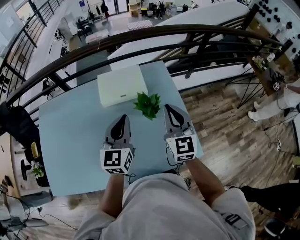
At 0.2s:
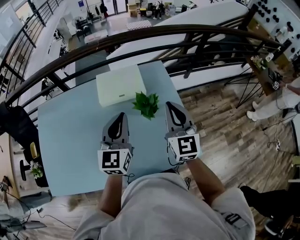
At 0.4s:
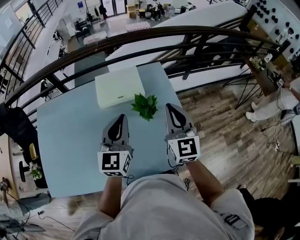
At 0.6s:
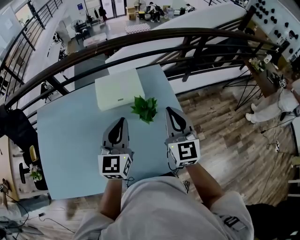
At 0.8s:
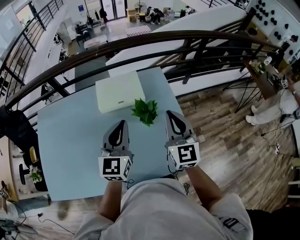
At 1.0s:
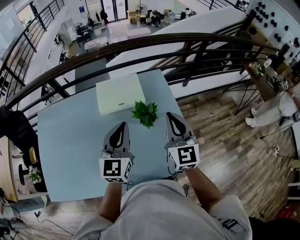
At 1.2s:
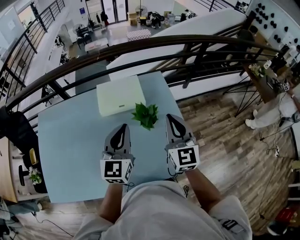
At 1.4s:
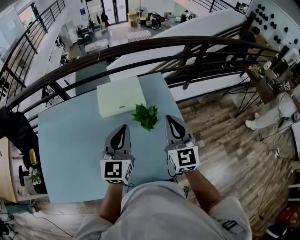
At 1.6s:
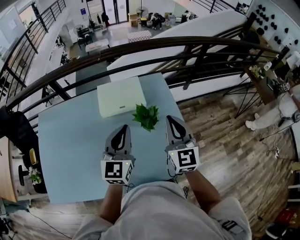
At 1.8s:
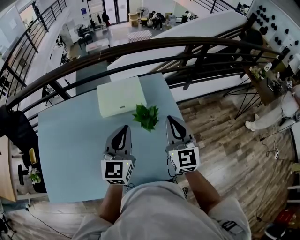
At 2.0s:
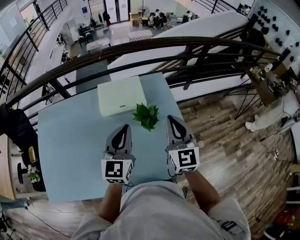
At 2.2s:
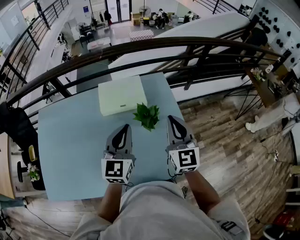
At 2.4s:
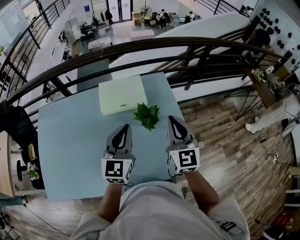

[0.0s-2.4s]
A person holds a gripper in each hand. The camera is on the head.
0.0s to 1.2s: The grippers make only small movements.
1.2s to 2.4s: Both grippers stay put.

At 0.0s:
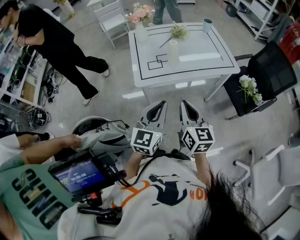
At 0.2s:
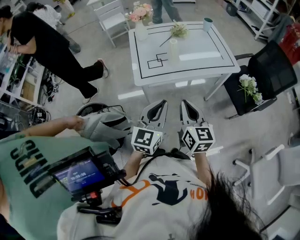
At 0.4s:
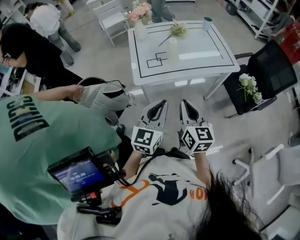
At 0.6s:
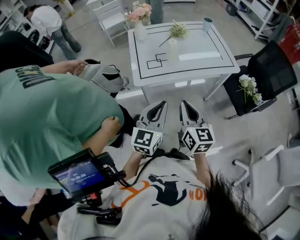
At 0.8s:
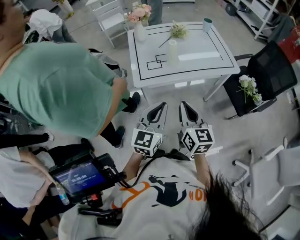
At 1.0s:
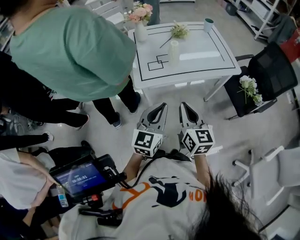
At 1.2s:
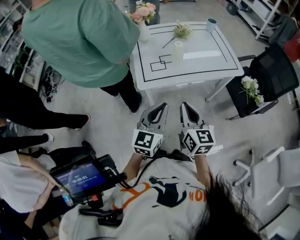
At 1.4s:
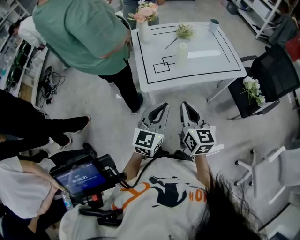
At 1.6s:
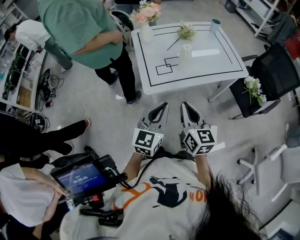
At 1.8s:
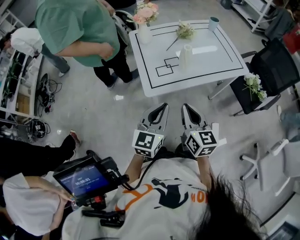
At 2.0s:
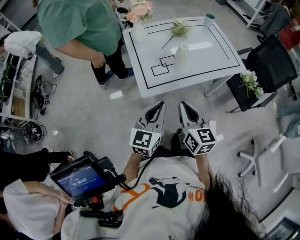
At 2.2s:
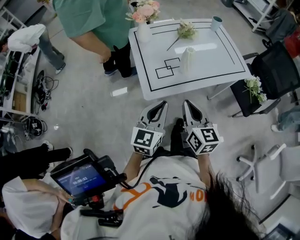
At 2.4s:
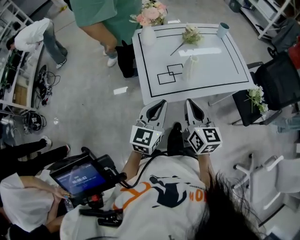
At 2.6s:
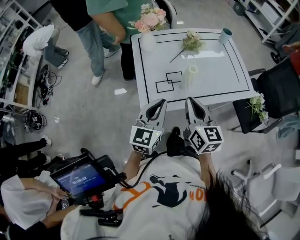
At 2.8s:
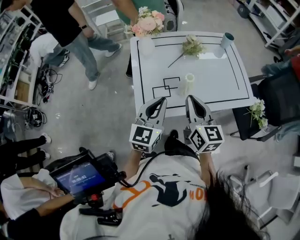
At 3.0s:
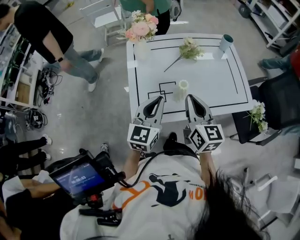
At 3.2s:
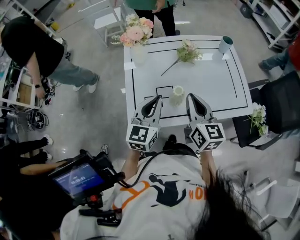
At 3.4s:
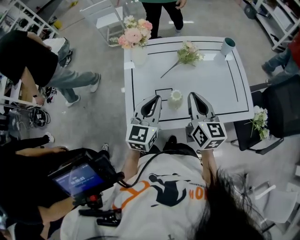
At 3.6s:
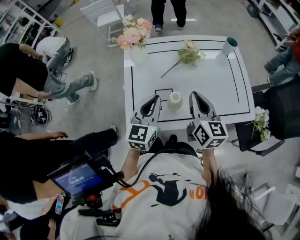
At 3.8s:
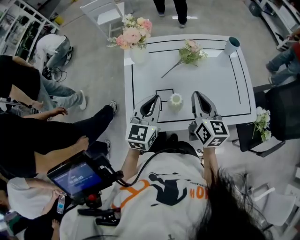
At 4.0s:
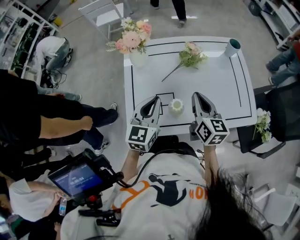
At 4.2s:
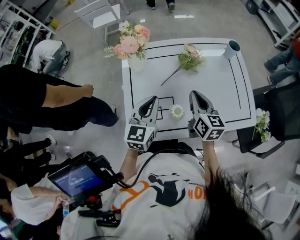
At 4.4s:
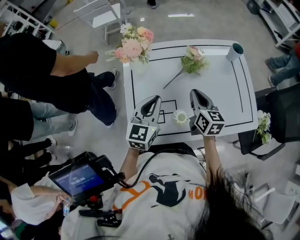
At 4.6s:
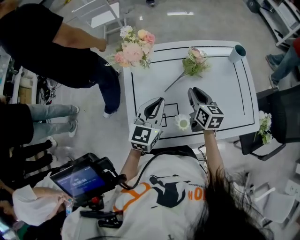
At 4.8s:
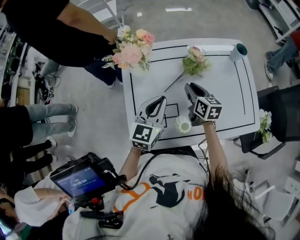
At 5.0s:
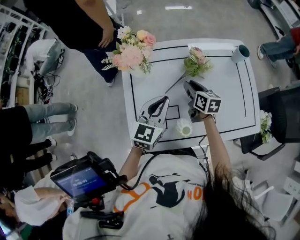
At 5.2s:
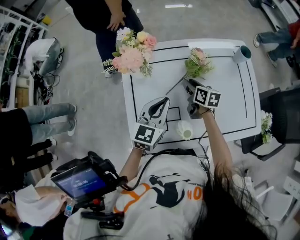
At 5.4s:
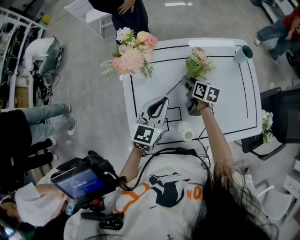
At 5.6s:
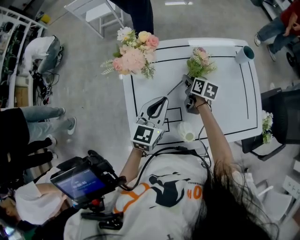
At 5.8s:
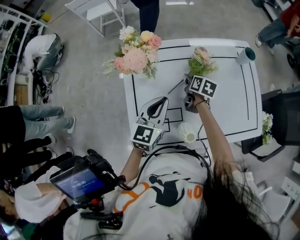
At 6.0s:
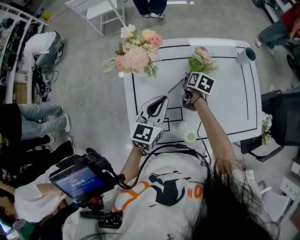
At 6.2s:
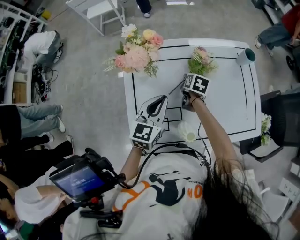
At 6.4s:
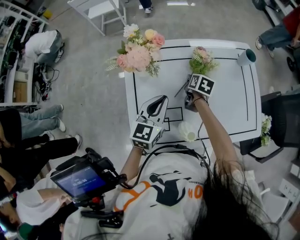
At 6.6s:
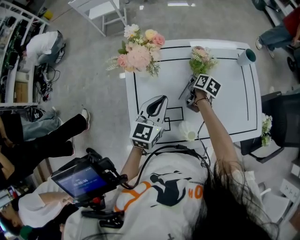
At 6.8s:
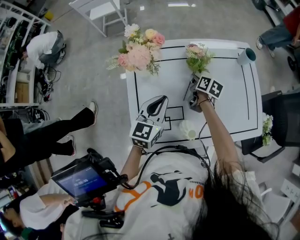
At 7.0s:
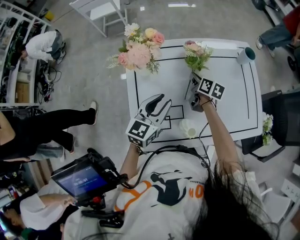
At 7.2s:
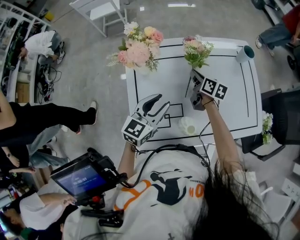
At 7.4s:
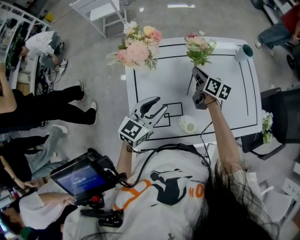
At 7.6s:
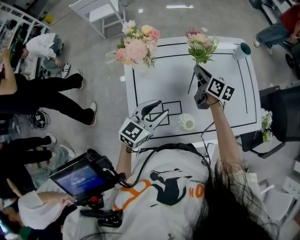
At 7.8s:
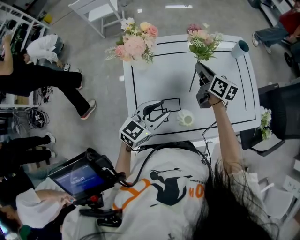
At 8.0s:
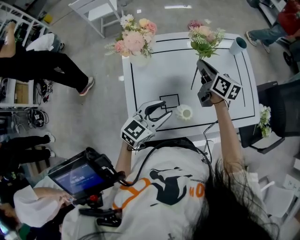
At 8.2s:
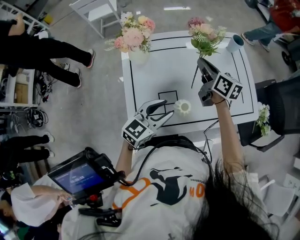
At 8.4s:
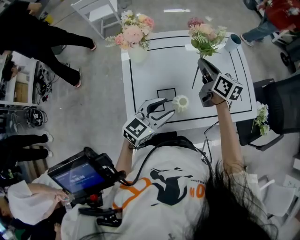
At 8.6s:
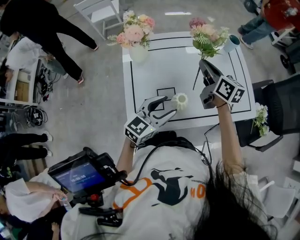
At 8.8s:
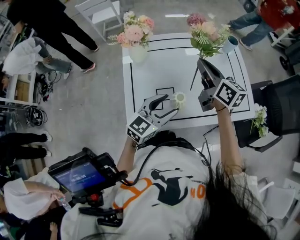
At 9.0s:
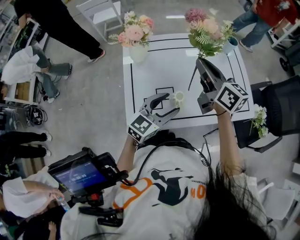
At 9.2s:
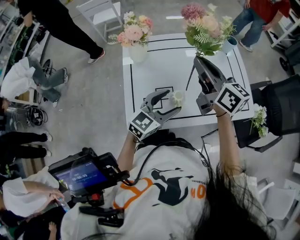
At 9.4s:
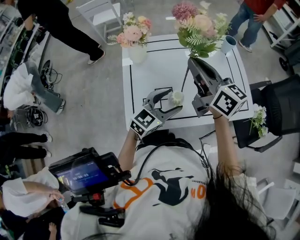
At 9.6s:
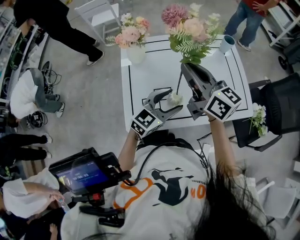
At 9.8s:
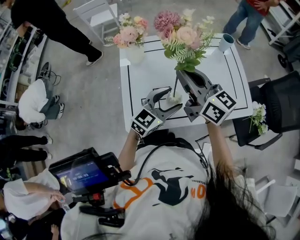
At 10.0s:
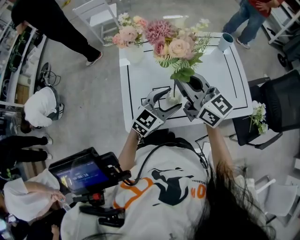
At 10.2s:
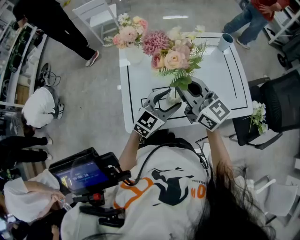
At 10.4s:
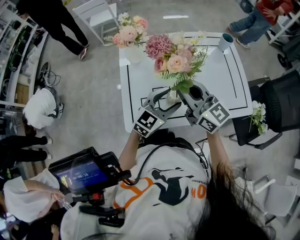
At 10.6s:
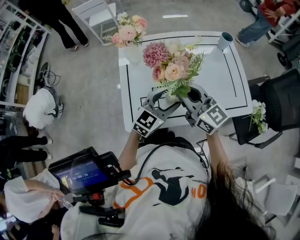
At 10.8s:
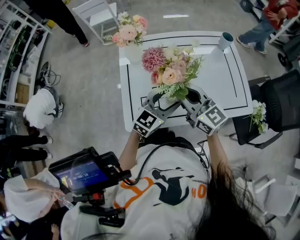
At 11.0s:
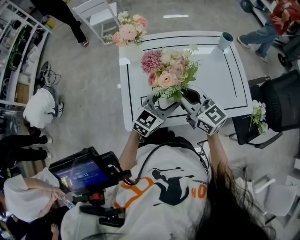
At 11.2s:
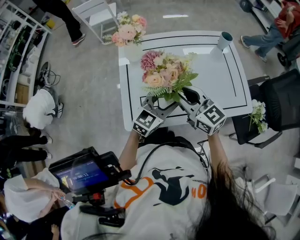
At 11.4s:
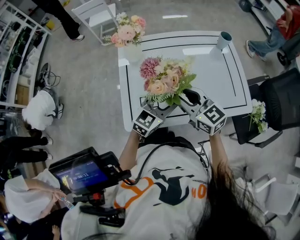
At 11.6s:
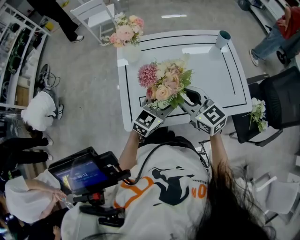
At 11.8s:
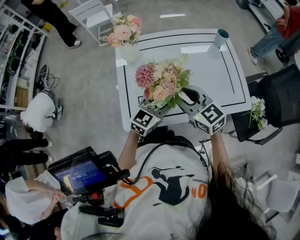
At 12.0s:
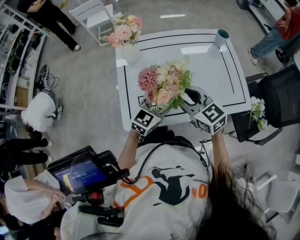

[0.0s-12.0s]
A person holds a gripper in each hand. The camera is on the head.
0.0s to 1.6s: The two grippers go some 10 cm to the left and forward.
1.6s to 3.0s: Both grippers move forward, about 20 cm.
3.0s to 4.4s: The right gripper heads forward and downward, covering some 20 cm. Meanwhile the left gripper moves forward, approximately 15 cm.
4.4s to 6.0s: The left gripper moves forward, some 5 cm, while the right gripper moves forward and downward, approximately 20 cm, tilts its fingers approximately 30 degrees downward, and opens.
6.0s to 7.6s: The right gripper heads upward, covering approximately 10 cm, angles its fingers upward, by roughly 30 degrees, and closes up. Meanwhile the left gripper goes about 5 cm backward, rotates approximately 20 degrees, and opens up.
7.6s to 9.0s: The left gripper moves to the right and backward, some 10 cm. Meanwhile the right gripper moves upward and backward, about 20 cm, and rotates approximately 20 degrees.
9.0s to 10.4s: The right gripper shifts some 10 cm backward and to the left, and turns by roughly 20 degrees.
10.4s to 12.0s: The right gripper moves downward, approximately 5 cm, swivels some 30 degrees, and opens up.

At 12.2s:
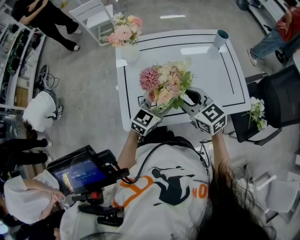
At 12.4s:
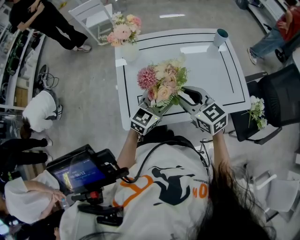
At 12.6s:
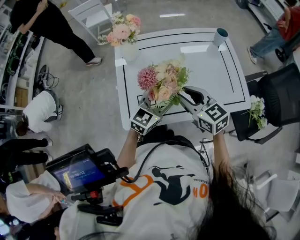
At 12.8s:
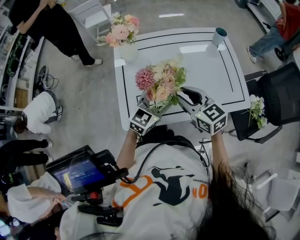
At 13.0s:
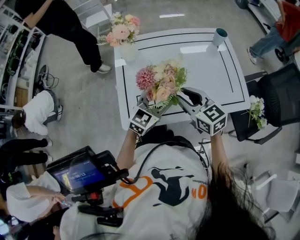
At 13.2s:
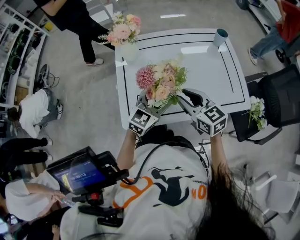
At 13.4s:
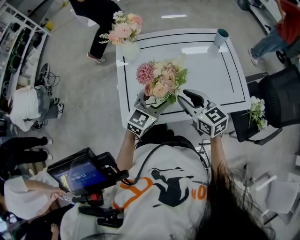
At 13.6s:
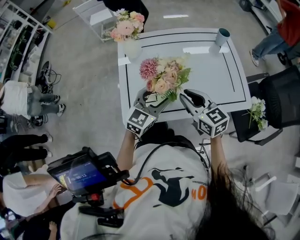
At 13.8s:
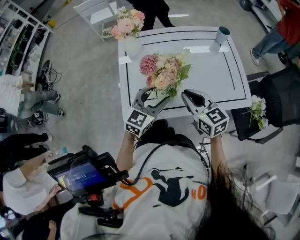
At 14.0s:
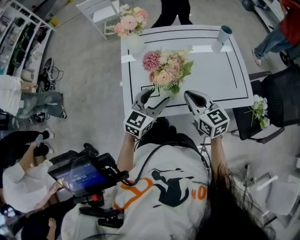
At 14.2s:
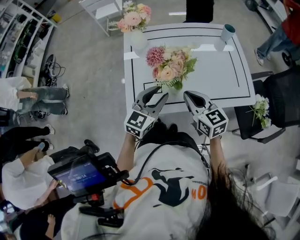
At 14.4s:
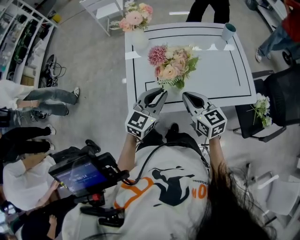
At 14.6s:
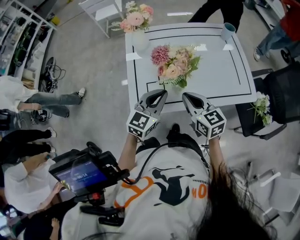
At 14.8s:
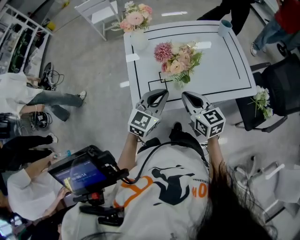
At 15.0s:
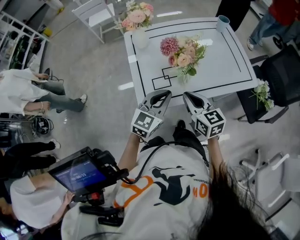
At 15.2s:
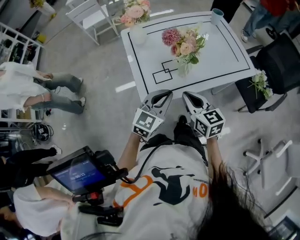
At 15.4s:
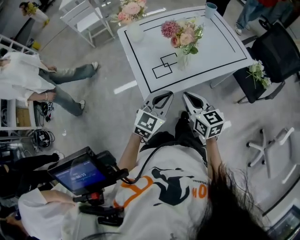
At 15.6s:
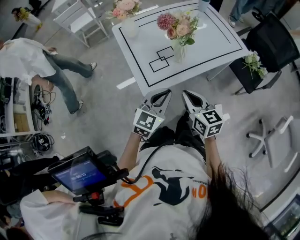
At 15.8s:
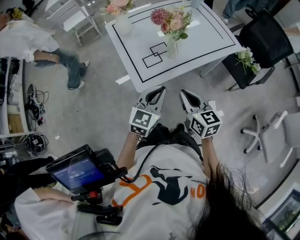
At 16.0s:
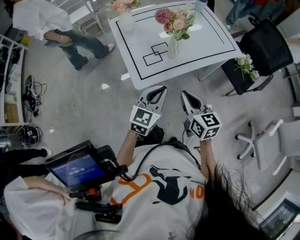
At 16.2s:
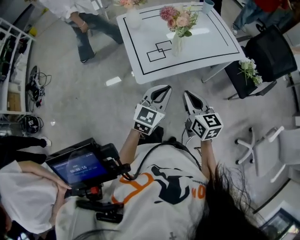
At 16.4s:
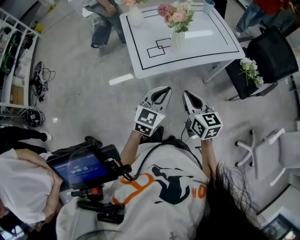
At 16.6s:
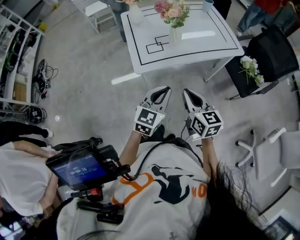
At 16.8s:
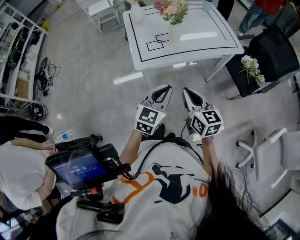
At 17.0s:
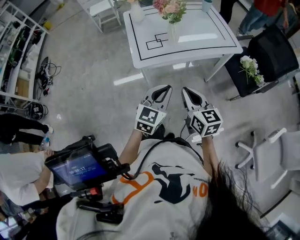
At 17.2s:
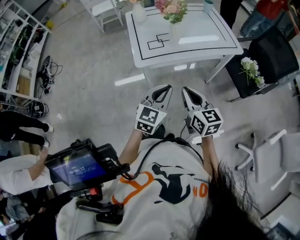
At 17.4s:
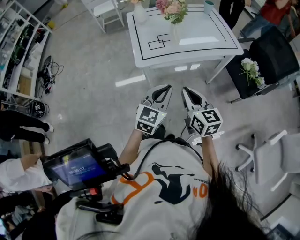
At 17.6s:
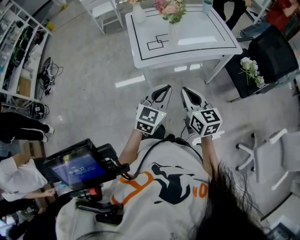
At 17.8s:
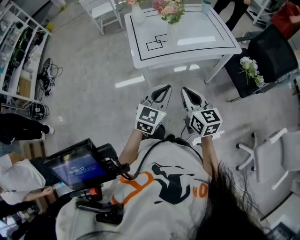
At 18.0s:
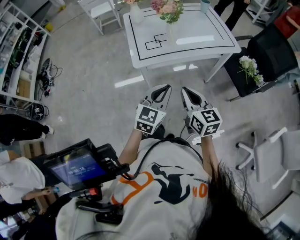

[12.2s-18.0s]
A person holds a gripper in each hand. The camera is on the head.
12.2s to 13.6s: The grippers make only small movements.
13.6s to 15.0s: Both grippers travel together backward and to the left, approximately 10 cm. The left gripper closes up.
15.0s to 16.6s: The grippers both shift backward by some 20 cm.
16.6s to 18.0s: There are only small adjustments of the grippers.

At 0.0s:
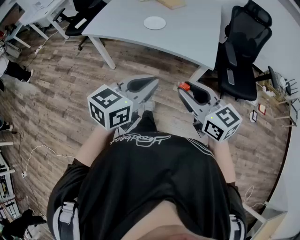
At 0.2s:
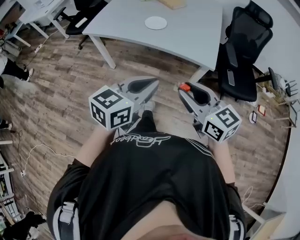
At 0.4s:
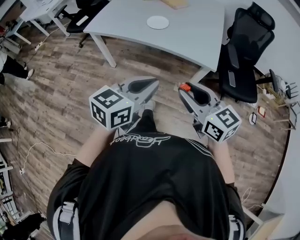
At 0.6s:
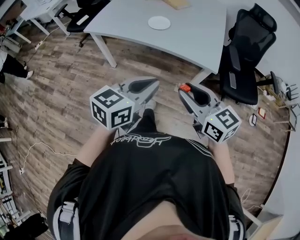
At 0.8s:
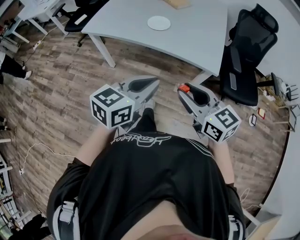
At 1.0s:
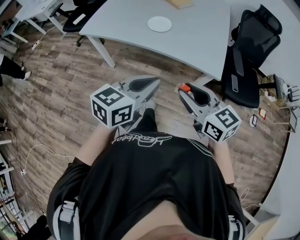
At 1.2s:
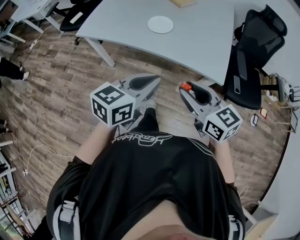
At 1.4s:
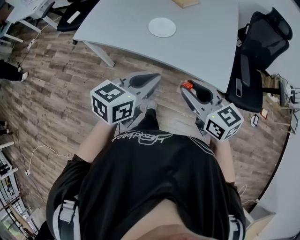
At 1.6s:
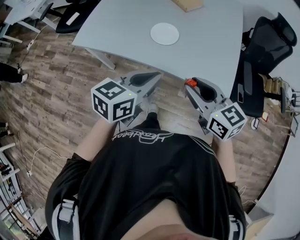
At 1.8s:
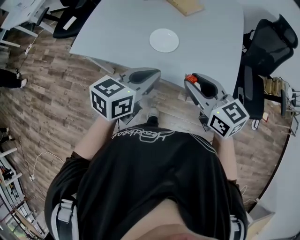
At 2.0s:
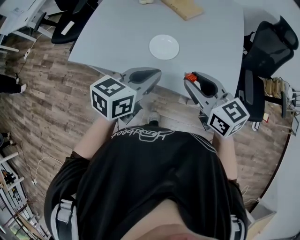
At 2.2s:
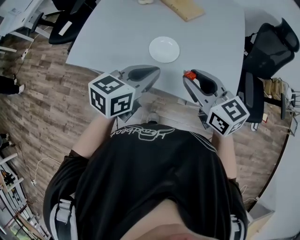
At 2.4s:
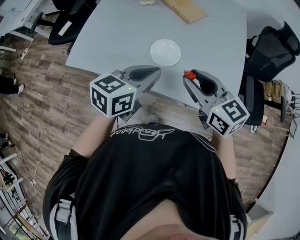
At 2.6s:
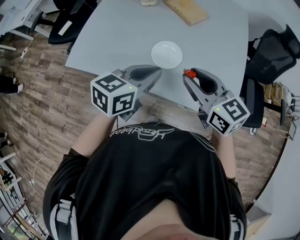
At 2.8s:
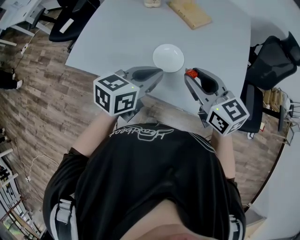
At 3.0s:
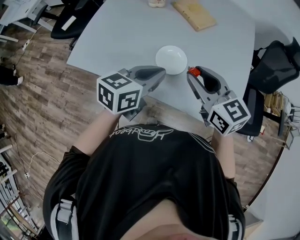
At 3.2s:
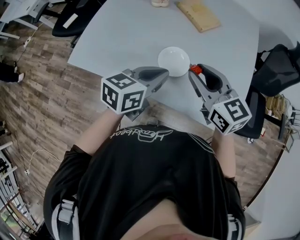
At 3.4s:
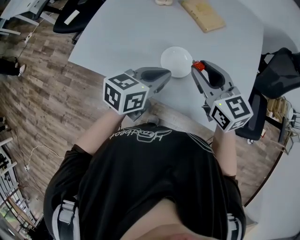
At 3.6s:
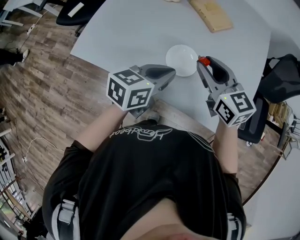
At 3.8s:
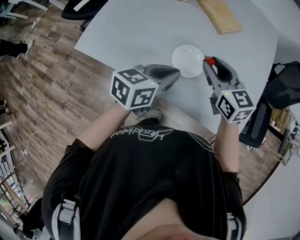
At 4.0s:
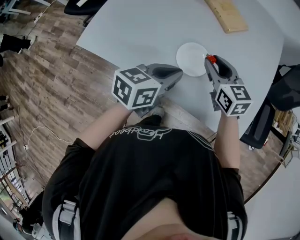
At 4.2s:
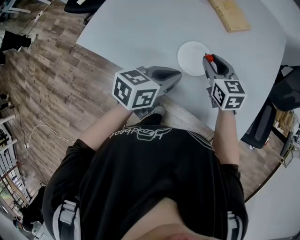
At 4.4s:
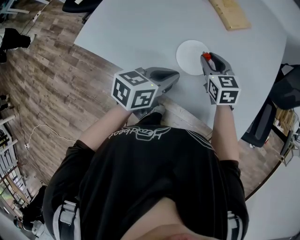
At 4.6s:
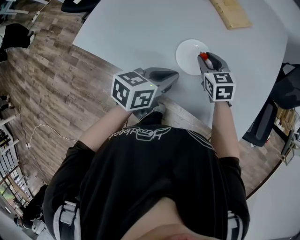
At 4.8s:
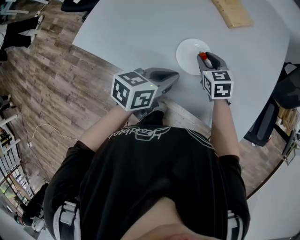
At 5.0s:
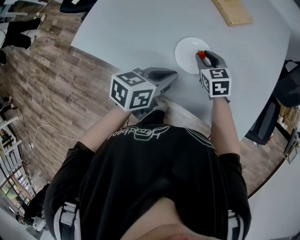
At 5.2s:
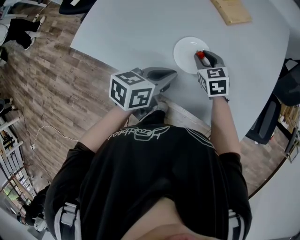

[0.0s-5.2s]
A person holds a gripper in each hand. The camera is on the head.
0.0s to 1.8s: Both grippers travel together forward, approximately 30 cm.
1.8s to 3.4s: Both grippers move forward, roughly 15 cm.
3.4s to 5.2s: The right gripper shifts approximately 20 cm downward, and swivels about 20 degrees; the left gripper shifts about 10 cm downward.
